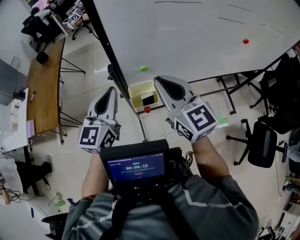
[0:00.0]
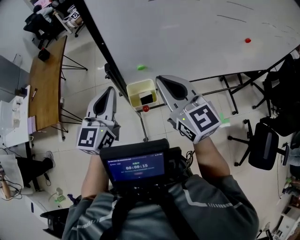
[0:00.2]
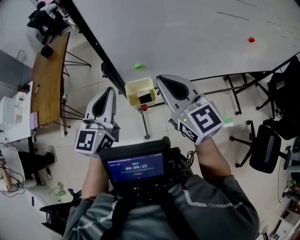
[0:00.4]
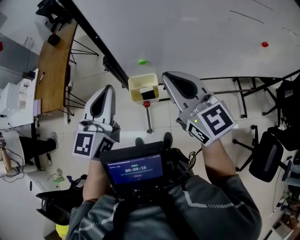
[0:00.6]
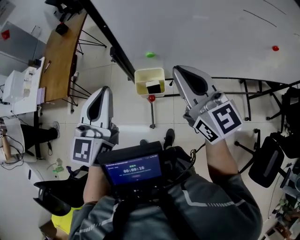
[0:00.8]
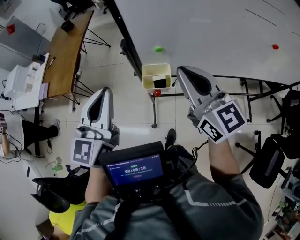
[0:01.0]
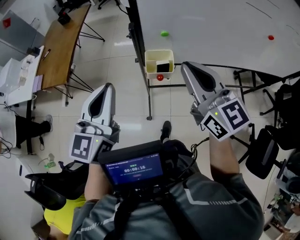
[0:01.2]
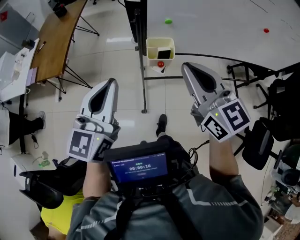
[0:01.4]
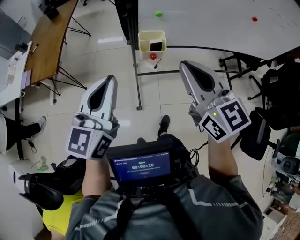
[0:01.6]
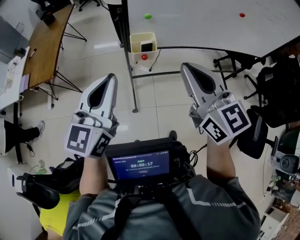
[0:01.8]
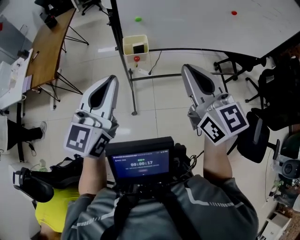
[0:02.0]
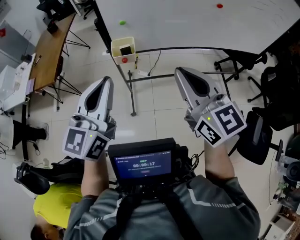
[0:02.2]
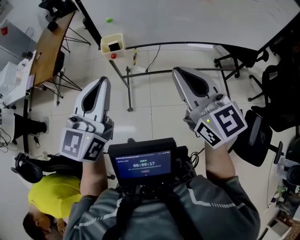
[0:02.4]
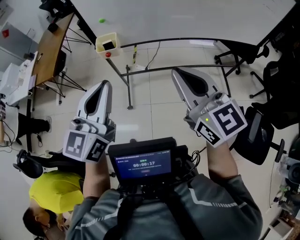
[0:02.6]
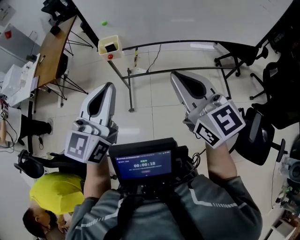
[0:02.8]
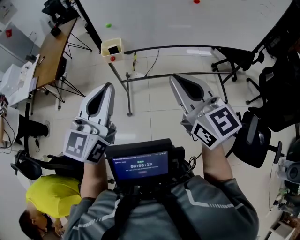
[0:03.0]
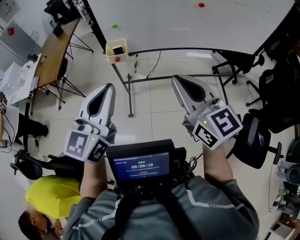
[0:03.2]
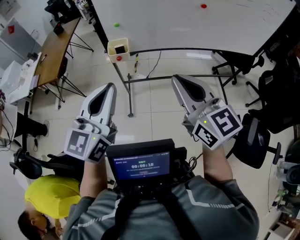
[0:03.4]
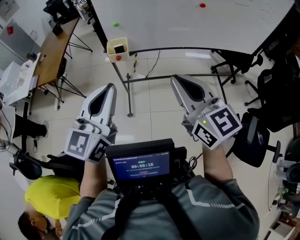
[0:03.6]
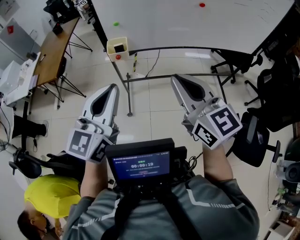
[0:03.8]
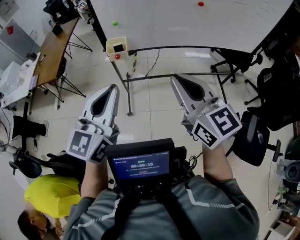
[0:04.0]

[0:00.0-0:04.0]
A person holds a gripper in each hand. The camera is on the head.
0:00.0 to 0:01.4: The two grippers go about 20 cm backward.
0:01.4 to 0:02.6: The grippers both shift to the right and backward by about 35 cm.
0:02.6 to 0:04.0: The two grippers go approximately 10 cm to the left and backward.

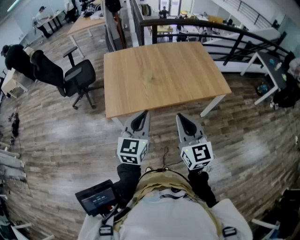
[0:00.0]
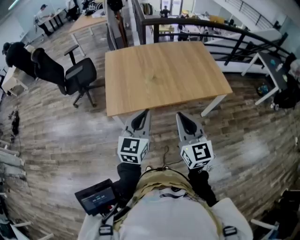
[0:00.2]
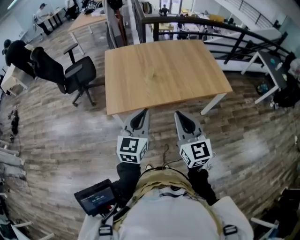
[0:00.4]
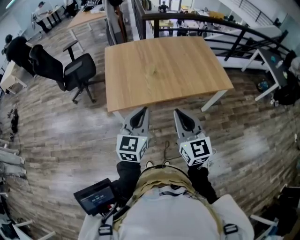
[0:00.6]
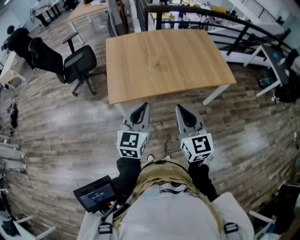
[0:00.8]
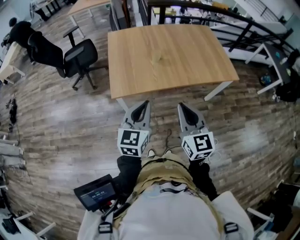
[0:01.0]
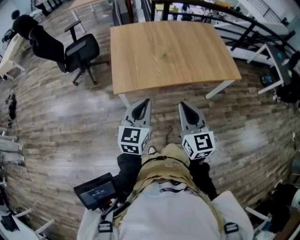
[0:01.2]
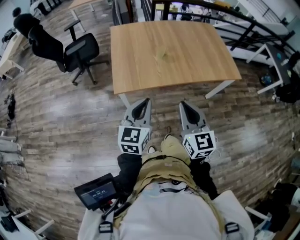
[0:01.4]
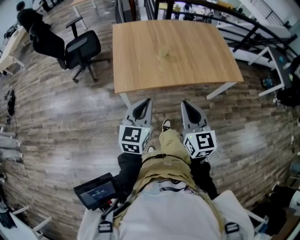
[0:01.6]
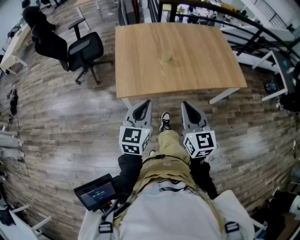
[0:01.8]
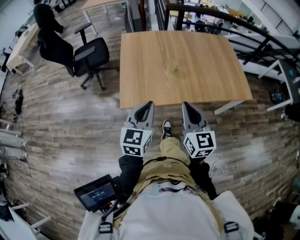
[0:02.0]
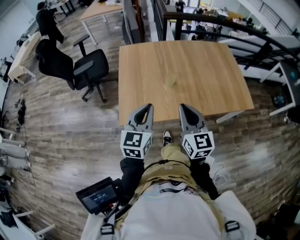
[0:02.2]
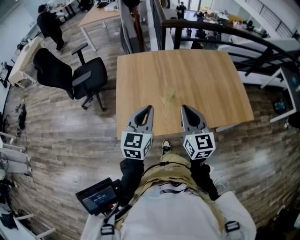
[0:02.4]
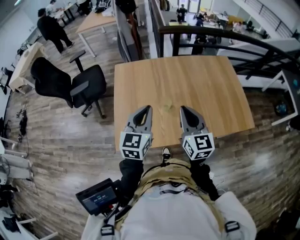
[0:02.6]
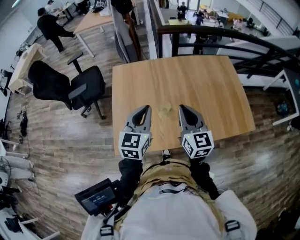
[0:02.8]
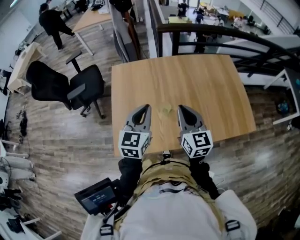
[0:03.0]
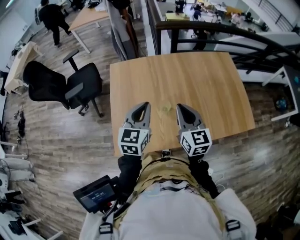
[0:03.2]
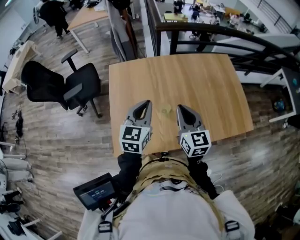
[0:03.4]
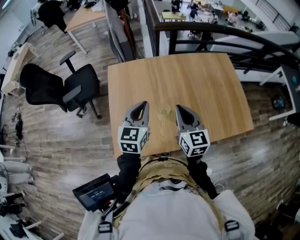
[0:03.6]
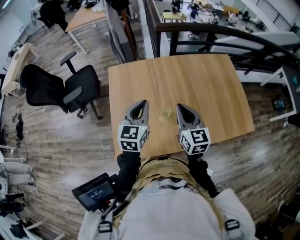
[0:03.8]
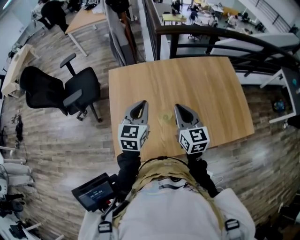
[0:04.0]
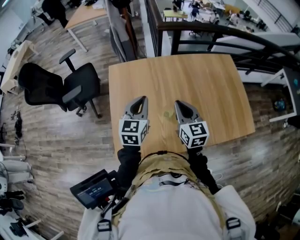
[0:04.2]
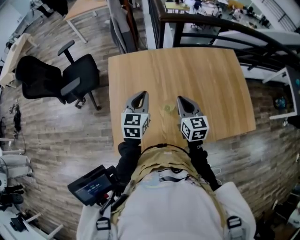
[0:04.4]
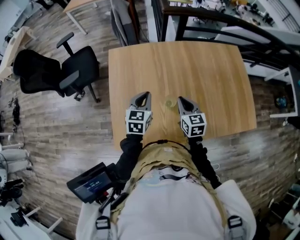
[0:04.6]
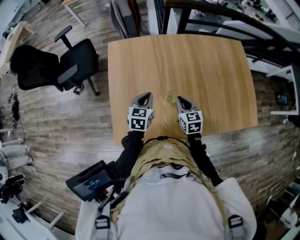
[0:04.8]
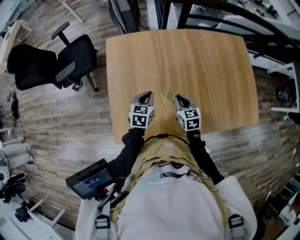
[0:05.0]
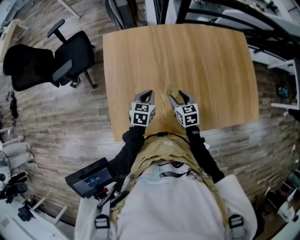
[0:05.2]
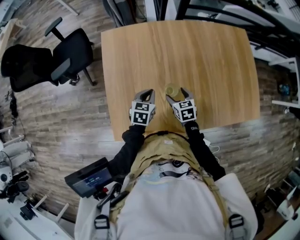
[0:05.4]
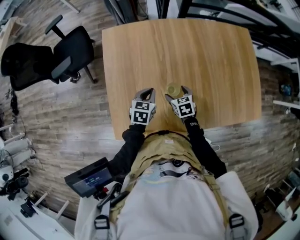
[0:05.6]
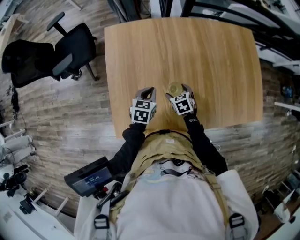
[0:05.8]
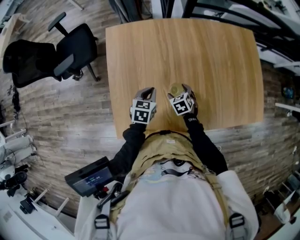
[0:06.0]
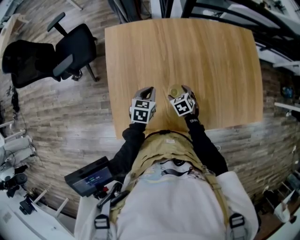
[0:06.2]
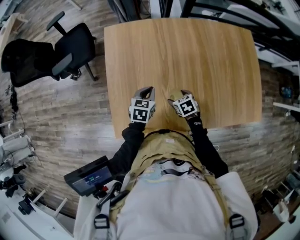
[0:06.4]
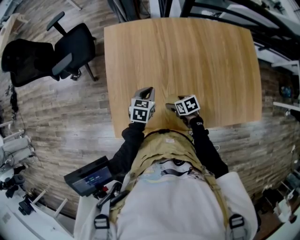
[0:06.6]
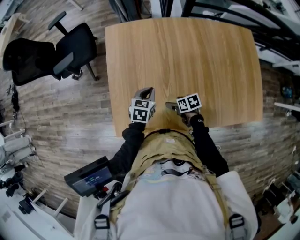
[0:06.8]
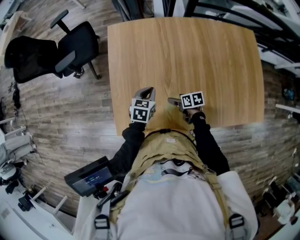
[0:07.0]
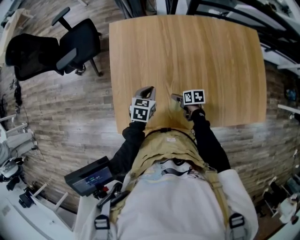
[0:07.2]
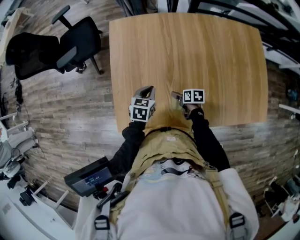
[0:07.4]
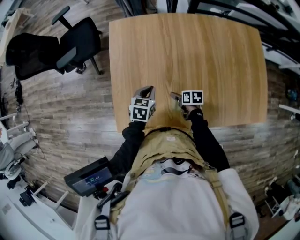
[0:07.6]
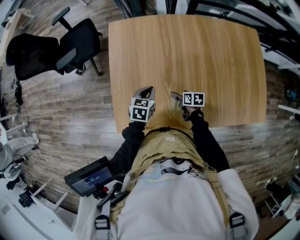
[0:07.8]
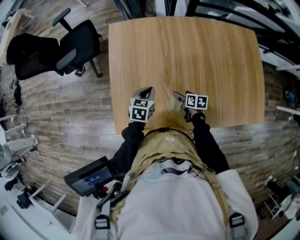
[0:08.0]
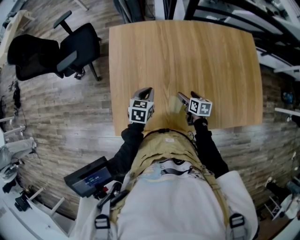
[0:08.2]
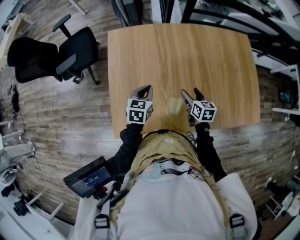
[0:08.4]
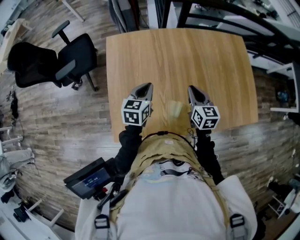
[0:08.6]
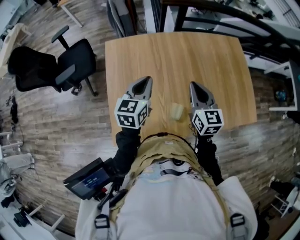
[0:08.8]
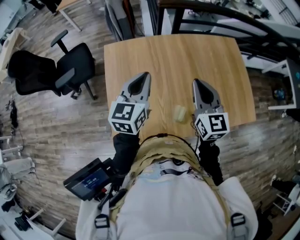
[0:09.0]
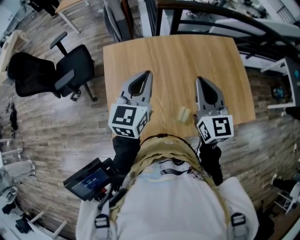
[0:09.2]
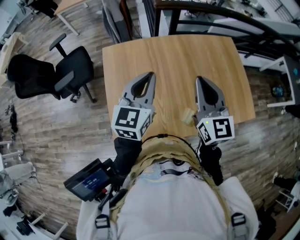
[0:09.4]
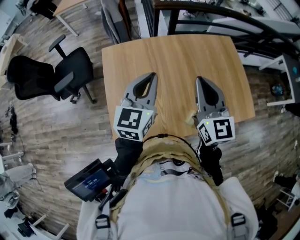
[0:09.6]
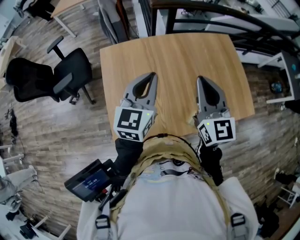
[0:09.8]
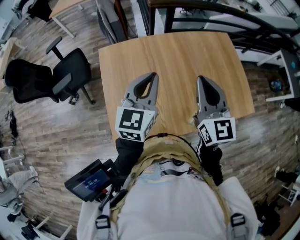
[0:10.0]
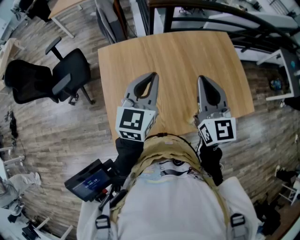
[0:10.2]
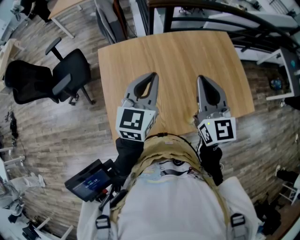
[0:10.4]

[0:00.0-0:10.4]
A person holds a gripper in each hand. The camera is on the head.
0:00.0 to 0:01.4: Both grippers move to the left and downward, roughly 10 cm.
0:01.4 to 0:03.0: The two grippers travel together, forward, some 40 cm.
0:03.0 to 0:04.4: Both grippers travel together forward and downward, approximately 15 cm.
0:04.4 to 0:06.0: The grippers both shift downward by approximately 25 cm. The right gripper angles its fingers downward, by about 40 degrees, and opens up. The left gripper changes its angle by about 30 degrees.
0:06.0 to 0:07.4: The right gripper travels downward by about 5 cm, and rotates around the line of its fingers by about 40 degrees, clockwise from behind.
0:07.4 to 0:09.0: The right gripper is displaced upward by some 40 cm, tilts its fingers some 50 degrees upward, and closes its fingers, while the left gripper travels upward by about 30 cm, and tilts its fingers some 40 degrees upward.
0:09.0 to 0:10.4: The left gripper ends up roughly 5 cm from where it was. Meanwhile the right gripper heads upward, covering some 5 cm.

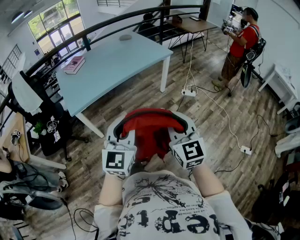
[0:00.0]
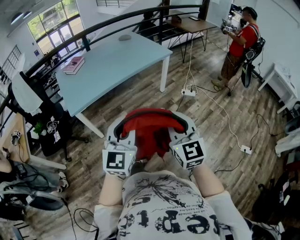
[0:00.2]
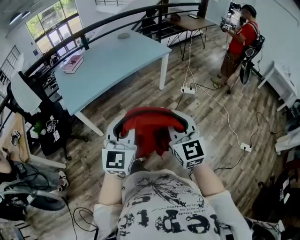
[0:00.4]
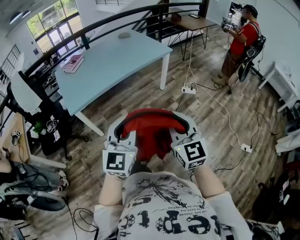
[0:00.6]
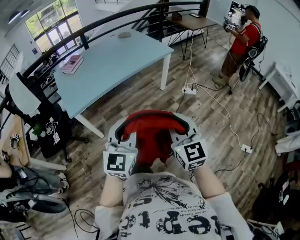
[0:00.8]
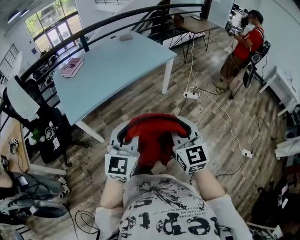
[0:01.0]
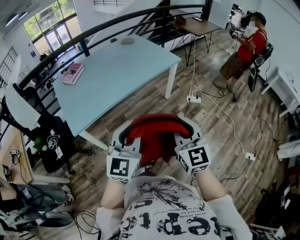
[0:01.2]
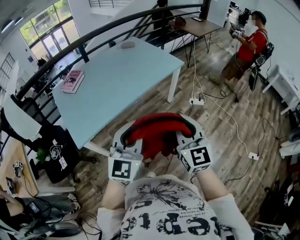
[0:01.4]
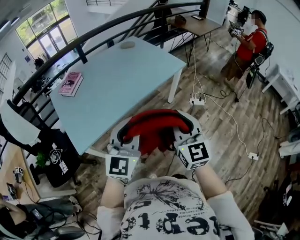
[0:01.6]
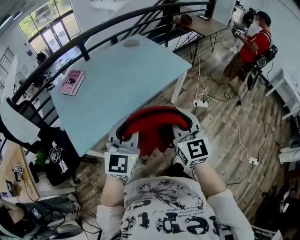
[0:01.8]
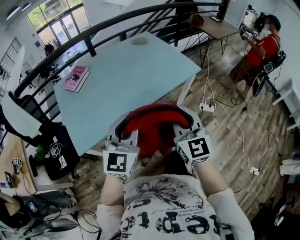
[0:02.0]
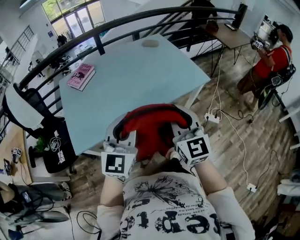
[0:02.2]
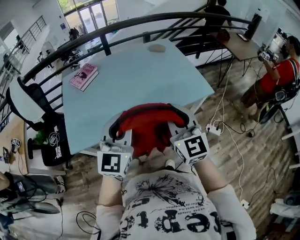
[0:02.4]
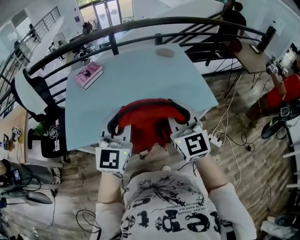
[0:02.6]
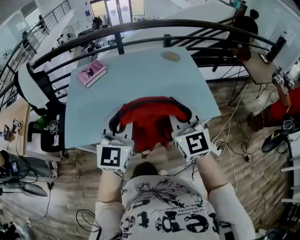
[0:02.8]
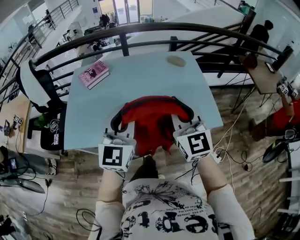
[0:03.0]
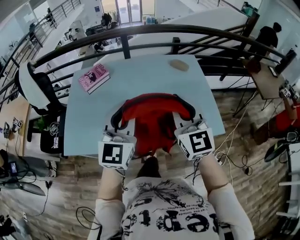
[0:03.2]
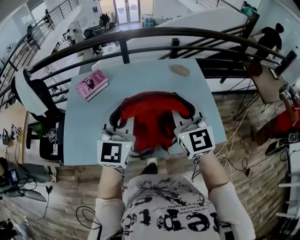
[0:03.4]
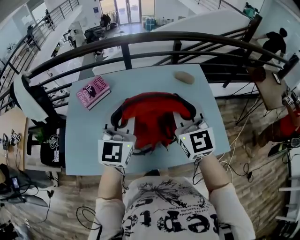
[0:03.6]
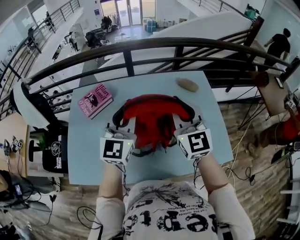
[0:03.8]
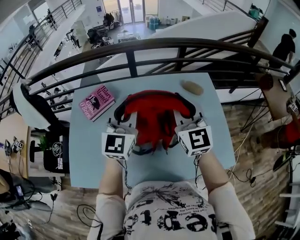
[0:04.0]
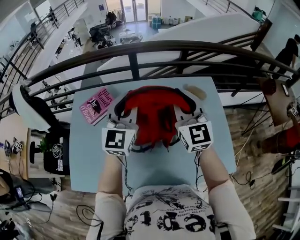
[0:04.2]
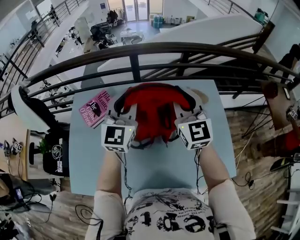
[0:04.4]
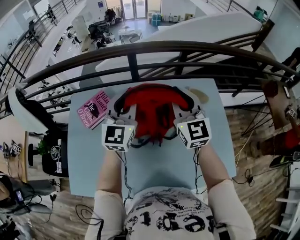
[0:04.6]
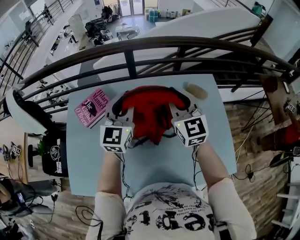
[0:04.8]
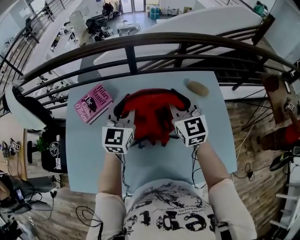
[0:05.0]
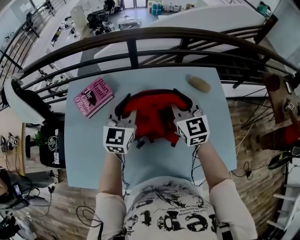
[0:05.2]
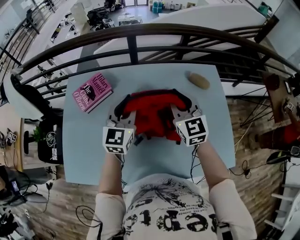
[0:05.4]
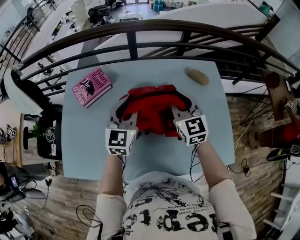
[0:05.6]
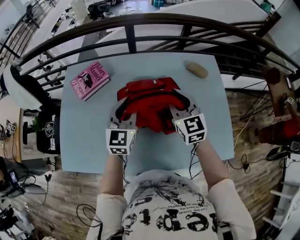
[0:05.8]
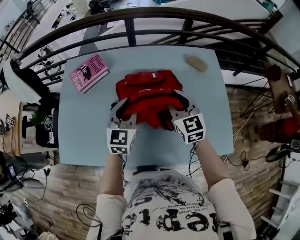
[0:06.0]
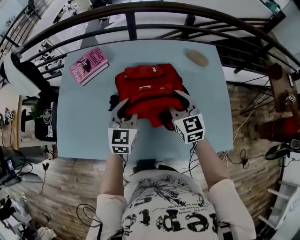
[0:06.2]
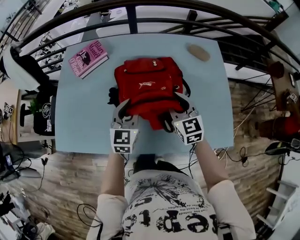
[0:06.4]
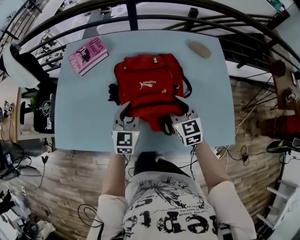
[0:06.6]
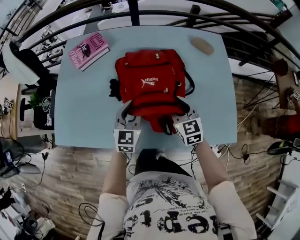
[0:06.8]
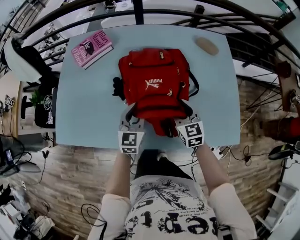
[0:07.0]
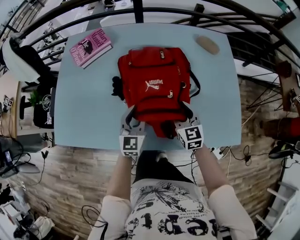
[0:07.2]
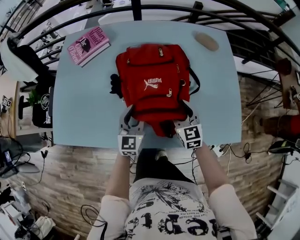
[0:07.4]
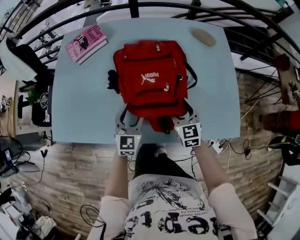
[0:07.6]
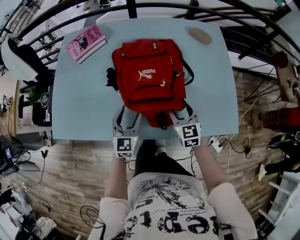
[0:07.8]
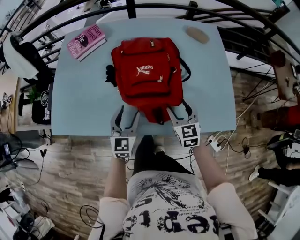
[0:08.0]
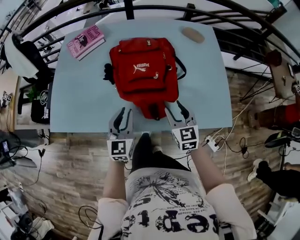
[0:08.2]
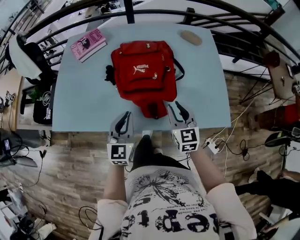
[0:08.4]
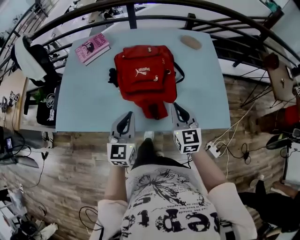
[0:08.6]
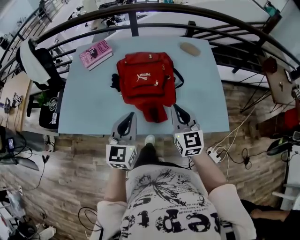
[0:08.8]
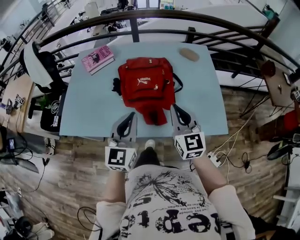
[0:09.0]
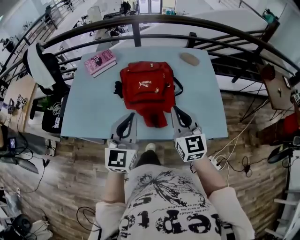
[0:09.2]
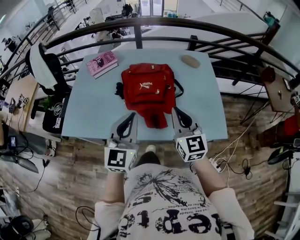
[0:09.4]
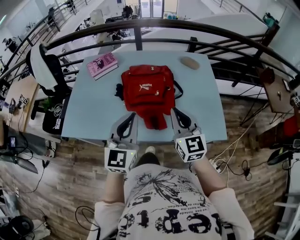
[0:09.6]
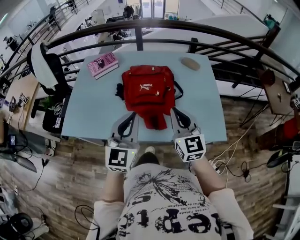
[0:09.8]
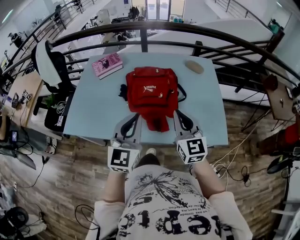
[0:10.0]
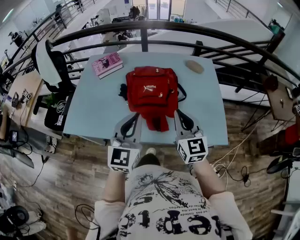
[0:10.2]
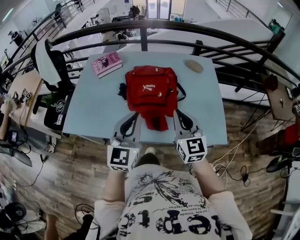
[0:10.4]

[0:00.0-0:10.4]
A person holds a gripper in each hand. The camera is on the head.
0:00.0 to 0:01.4: The two grippers go roughly 25 cm forward and to the left.
0:01.4 to 0:03.0: Both grippers are carried some 50 cm. The right gripper changes its angle by roughly 40 degrees. The left gripper swivels roughly 40 degrees.
0:03.0 to 0:04.4: Both grippers are carried forward, some 40 cm.
0:04.4 to 0:06.0: Both grippers move downward and backward, roughly 25 cm. The left gripper changes its angle by about 20 degrees. Meanwhile the right gripper rotates approximately 20 degrees.
0:06.0 to 0:07.4: Both grippers travel together downward and backward, roughly 20 cm. The right gripper opens its fingers.
0:07.4 to 0:09.0: The grippers both shift upward and backward by about 30 cm. The left gripper closes; the right gripper turns by roughly 20 degrees, and closes up.
0:09.0 to 0:10.4: The grippers stay close to where they were, moving slightly.
